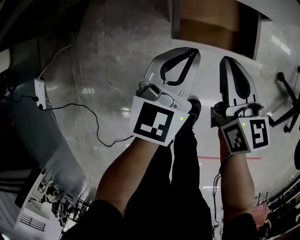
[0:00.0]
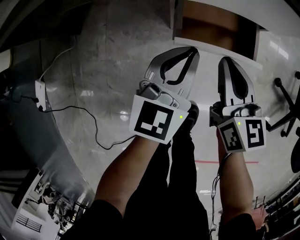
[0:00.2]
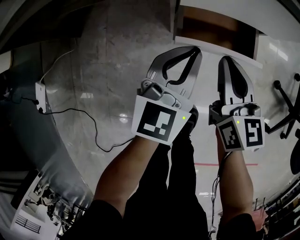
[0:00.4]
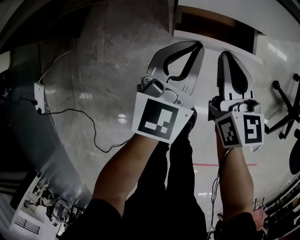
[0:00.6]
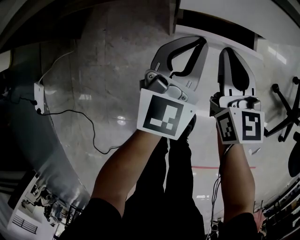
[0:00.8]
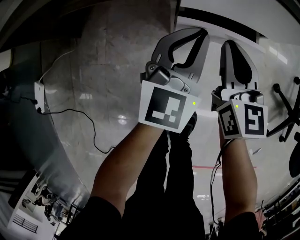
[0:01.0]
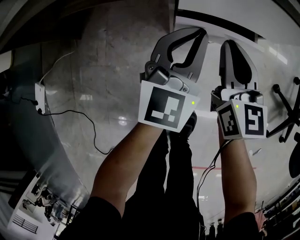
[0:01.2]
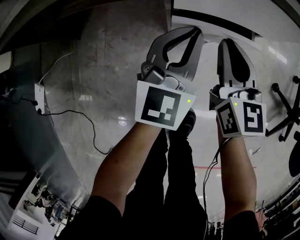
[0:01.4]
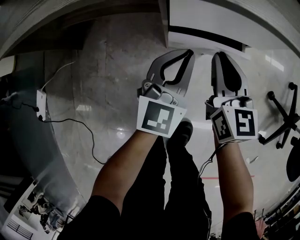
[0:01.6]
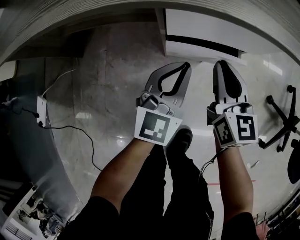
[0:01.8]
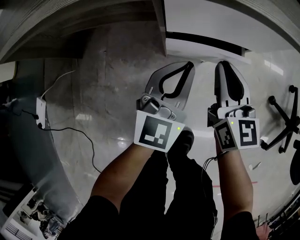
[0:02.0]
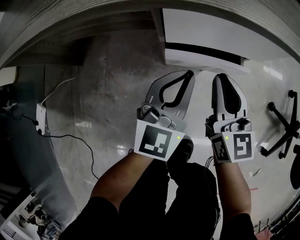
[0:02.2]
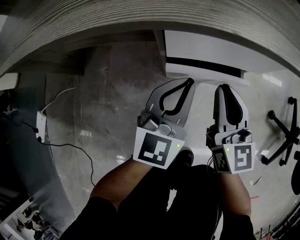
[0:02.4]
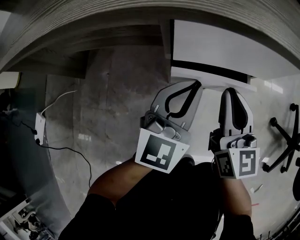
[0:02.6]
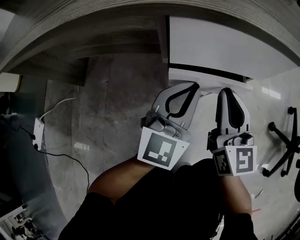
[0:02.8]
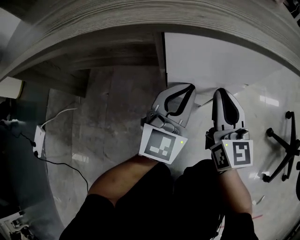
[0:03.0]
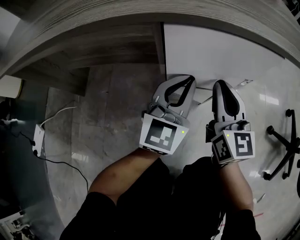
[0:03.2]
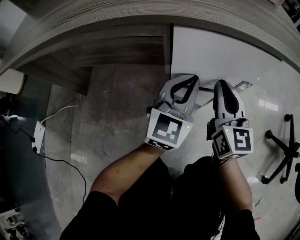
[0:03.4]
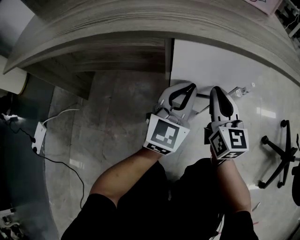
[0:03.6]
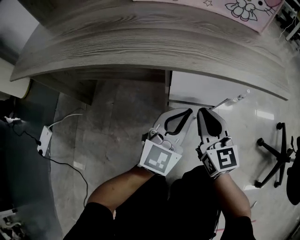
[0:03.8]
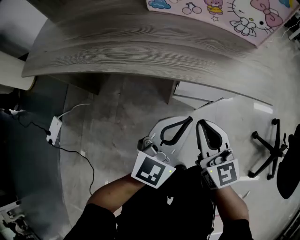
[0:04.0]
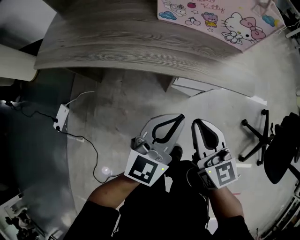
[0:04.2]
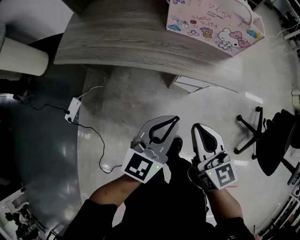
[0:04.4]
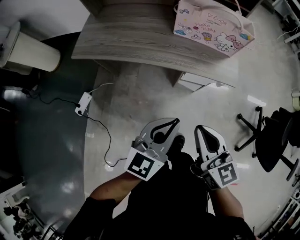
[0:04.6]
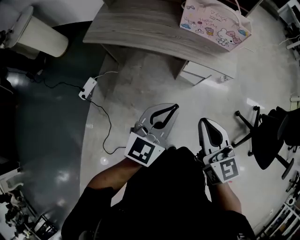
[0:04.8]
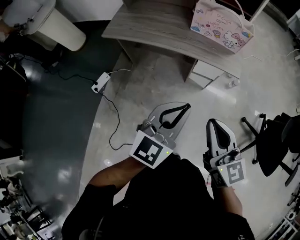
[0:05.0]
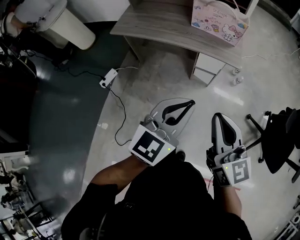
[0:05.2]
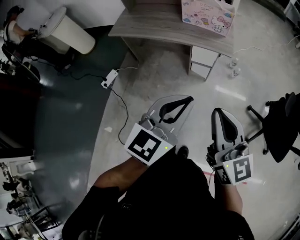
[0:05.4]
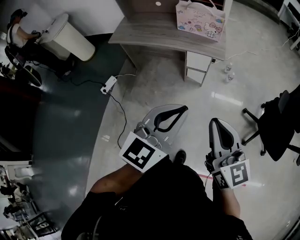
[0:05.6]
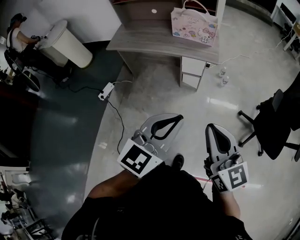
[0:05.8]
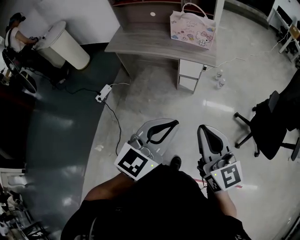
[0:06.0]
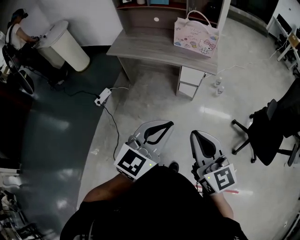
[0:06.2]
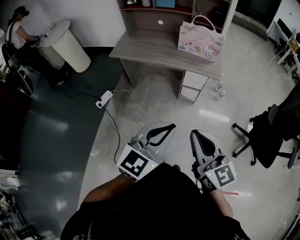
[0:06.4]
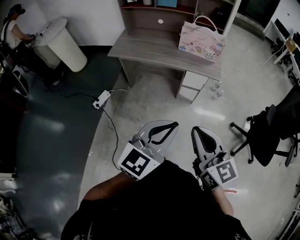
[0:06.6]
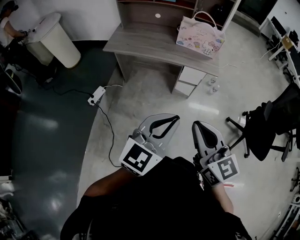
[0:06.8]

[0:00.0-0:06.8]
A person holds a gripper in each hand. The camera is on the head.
0:00.0 to 0:01.4: Both grippers move forward, approximately 5 cm.
0:01.4 to 0:02.8: The grippers move only a little.
0:02.8 to 0:04.0: The left gripper shifts approximately 20 cm upward and backward. Meanwhile the right gripper shifts roughly 15 cm upward, backward and to the left.
0:04.0 to 0:05.4: Both grippers move upward and backward, approximately 60 cm.
0:05.4 to 0:06.8: The two grippers go some 15 cm to the left.

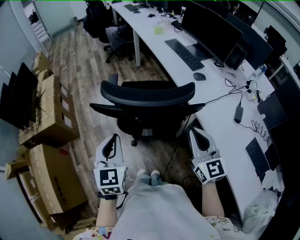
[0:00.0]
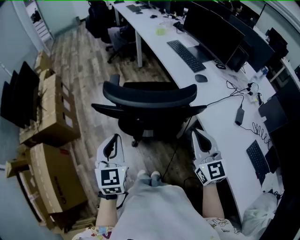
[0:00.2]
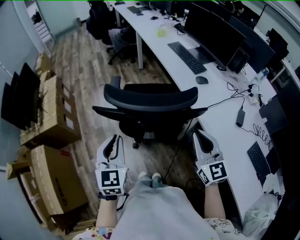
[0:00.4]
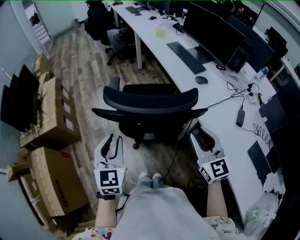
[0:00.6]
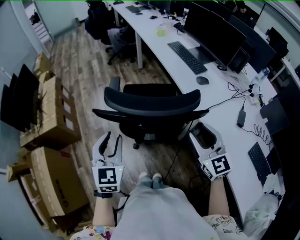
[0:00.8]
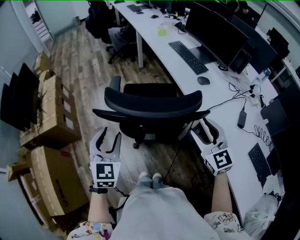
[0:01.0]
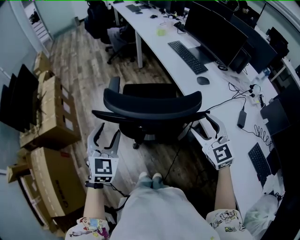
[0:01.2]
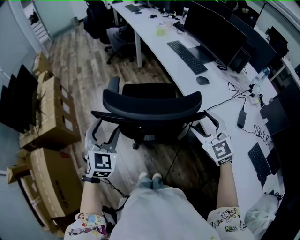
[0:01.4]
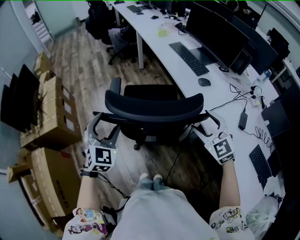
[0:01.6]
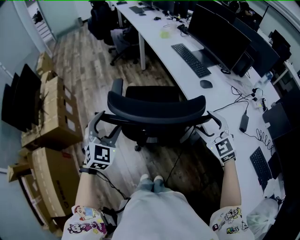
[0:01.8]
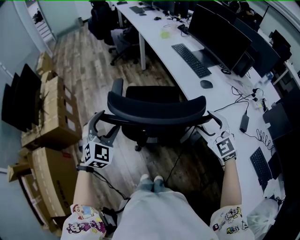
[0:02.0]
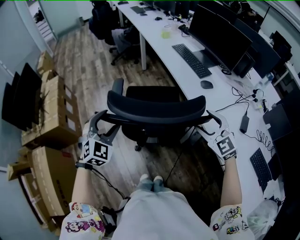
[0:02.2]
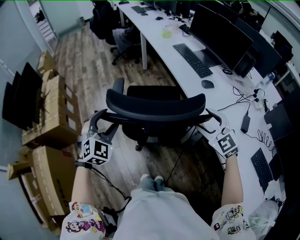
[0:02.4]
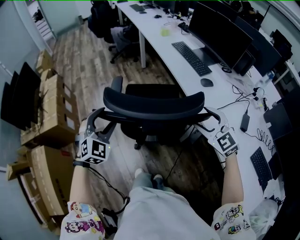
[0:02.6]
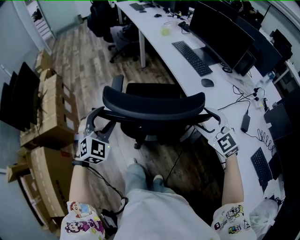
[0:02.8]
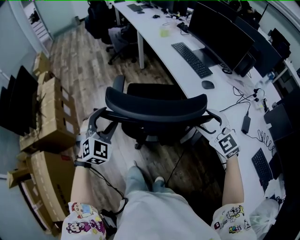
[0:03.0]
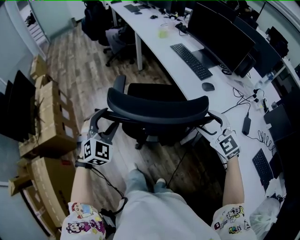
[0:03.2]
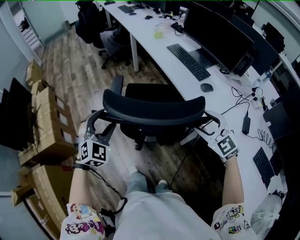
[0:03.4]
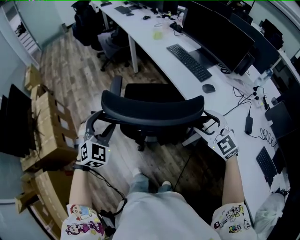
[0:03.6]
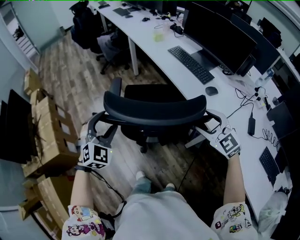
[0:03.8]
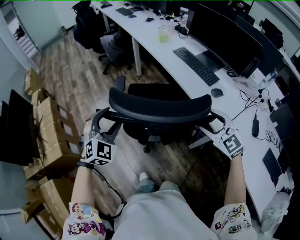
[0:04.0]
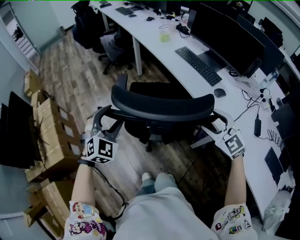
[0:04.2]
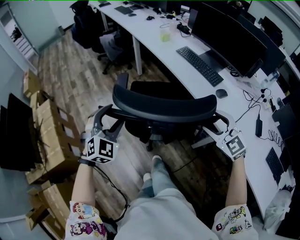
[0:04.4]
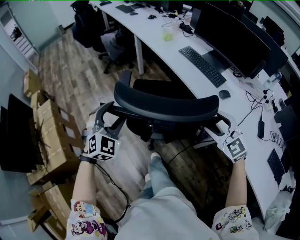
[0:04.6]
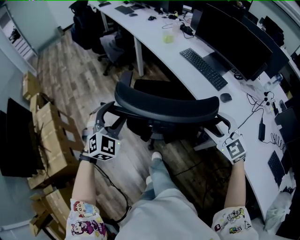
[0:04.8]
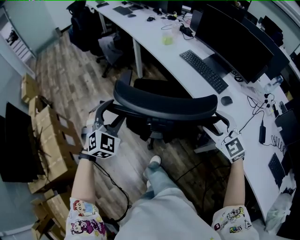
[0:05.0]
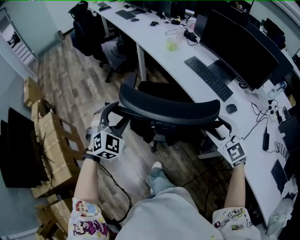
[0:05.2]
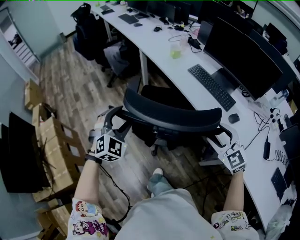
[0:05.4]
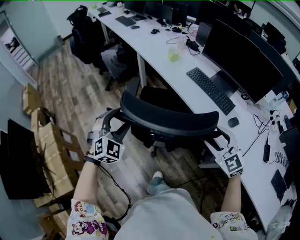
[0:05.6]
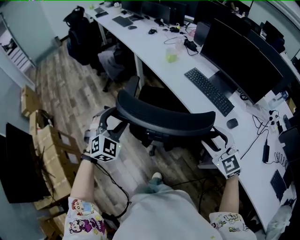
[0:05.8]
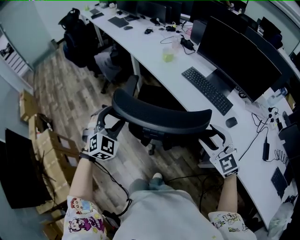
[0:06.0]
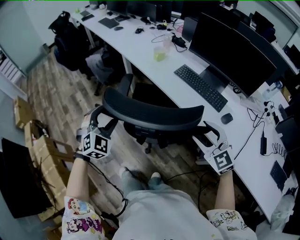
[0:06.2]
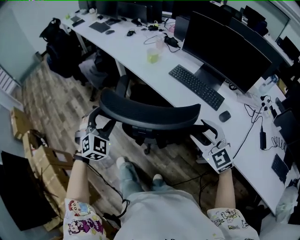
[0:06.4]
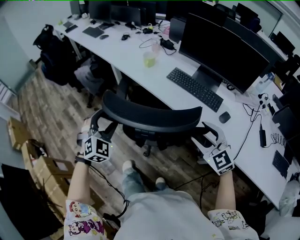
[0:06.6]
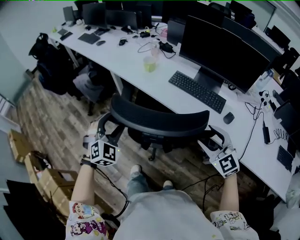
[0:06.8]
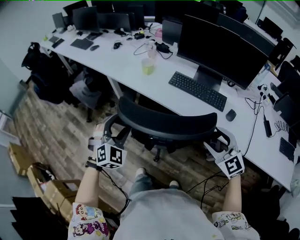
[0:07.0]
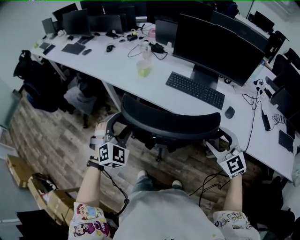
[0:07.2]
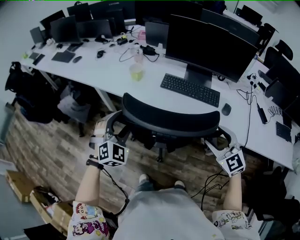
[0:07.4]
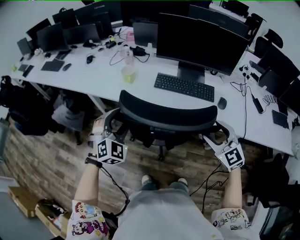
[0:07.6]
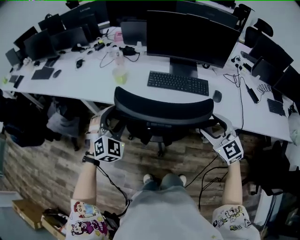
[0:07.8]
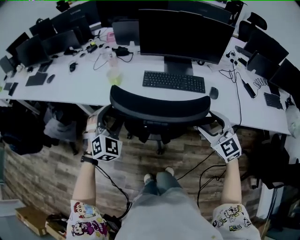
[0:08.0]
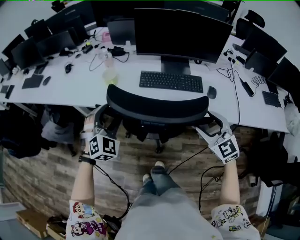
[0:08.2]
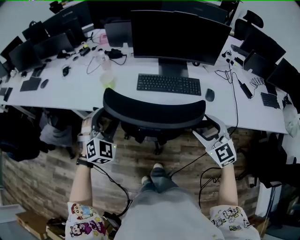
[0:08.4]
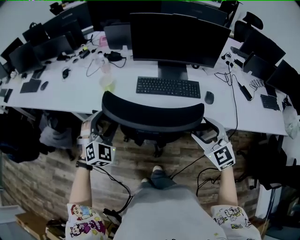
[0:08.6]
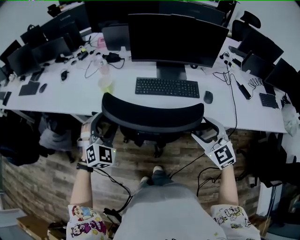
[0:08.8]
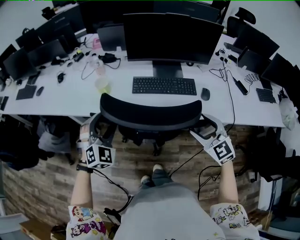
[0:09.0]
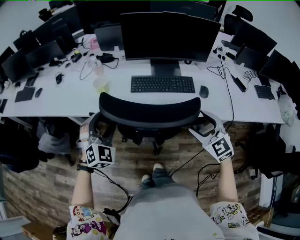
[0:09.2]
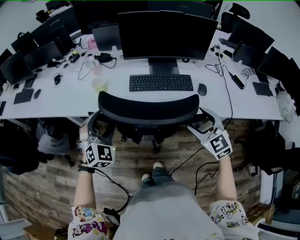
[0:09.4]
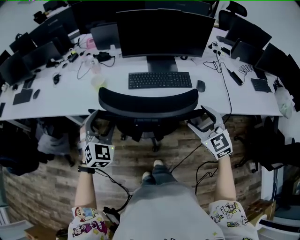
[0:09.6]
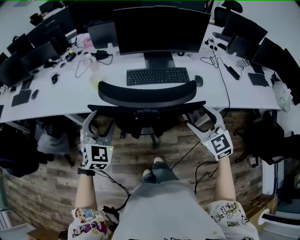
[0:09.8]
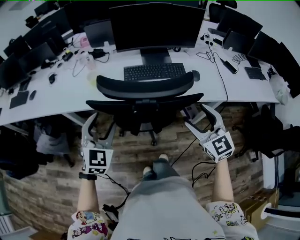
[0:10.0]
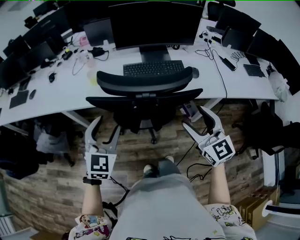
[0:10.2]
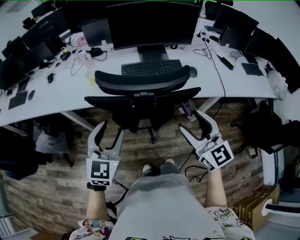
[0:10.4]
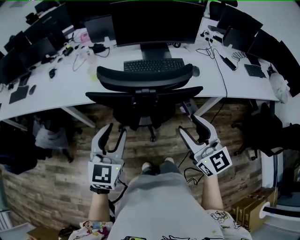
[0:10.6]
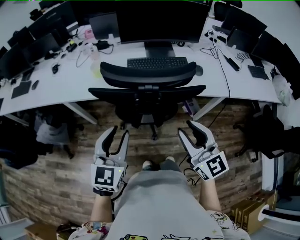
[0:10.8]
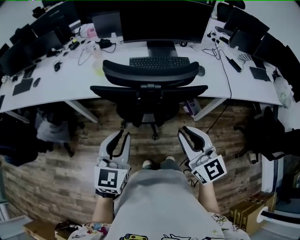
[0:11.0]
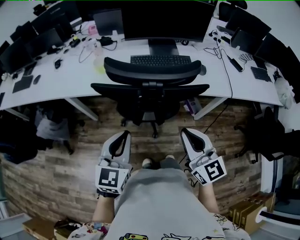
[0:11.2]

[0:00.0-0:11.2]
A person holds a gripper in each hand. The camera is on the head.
0:00.0 to 0:01.6: Both grippers travel together forward, some 10 cm. The left gripper changes its angle by approximately 30 degrees, and opens its fingers. Meanwhile the right gripper rotates some 30 degrees, and opens its fingers.
0:01.6 to 0:03.2: Both grippers travel together forward, about 5 cm.
0:03.2 to 0:04.8: The left gripper goes about 20 cm forward. The right gripper shifts approximately 15 cm forward and to the left.
0:04.8 to 0:06.4: The left gripper goes roughly 25 cm forward, while the right gripper goes some 15 cm forward.
0:06.4 to 0:08.0: The right gripper changes place by some 5 cm, and swivels about 40 degrees; the left gripper ends up approximately 25 cm from where it was, and changes its angle by about 40 degrees.
0:08.0 to 0:09.6: There are only small adjustments of the grippers.
0:09.6 to 0:11.2: The left gripper is displaced backward by about 20 cm, changes its angle by about 40 degrees, and closes its fingers, while the right gripper is displaced backward and to the left by roughly 20 cm, turns by approximately 30 degrees, and closes its fingers.

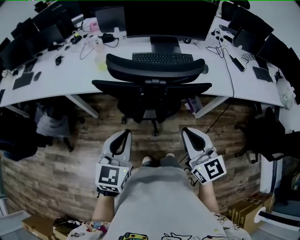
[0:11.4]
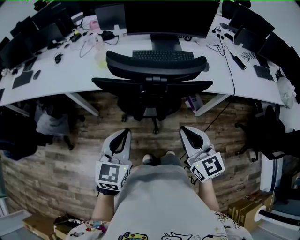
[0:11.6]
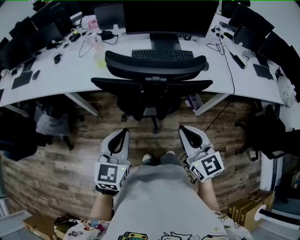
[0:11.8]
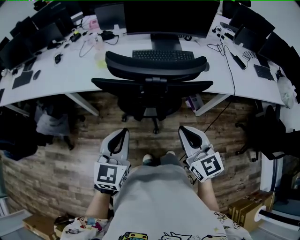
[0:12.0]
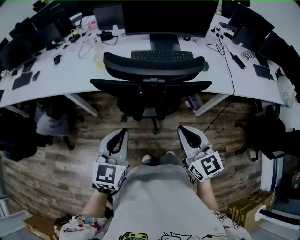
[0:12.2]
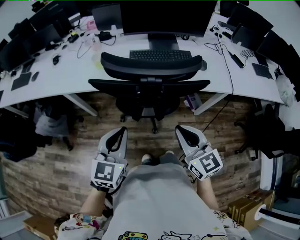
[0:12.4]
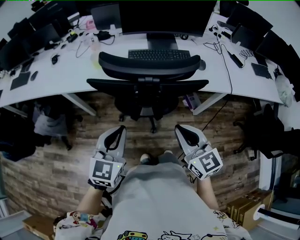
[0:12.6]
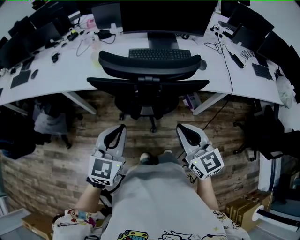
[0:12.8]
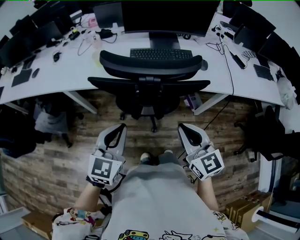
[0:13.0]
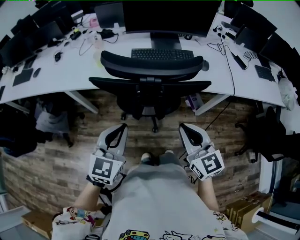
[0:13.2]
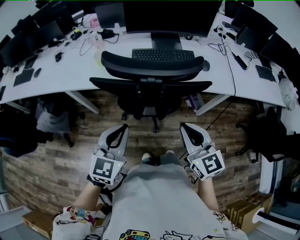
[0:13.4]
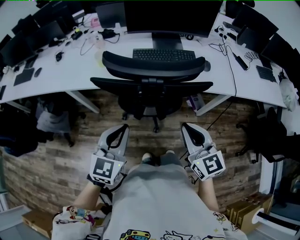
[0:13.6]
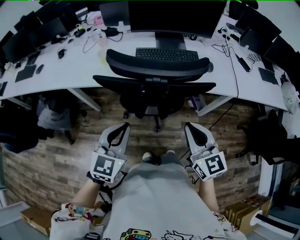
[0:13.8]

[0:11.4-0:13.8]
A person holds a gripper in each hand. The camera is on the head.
0:11.4 to 0:13.8: The grippers stay close to where they were, moving slightly.

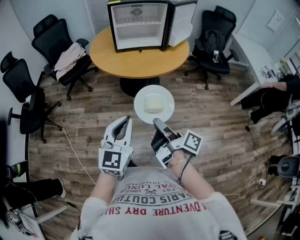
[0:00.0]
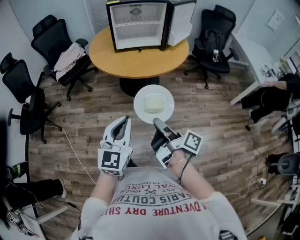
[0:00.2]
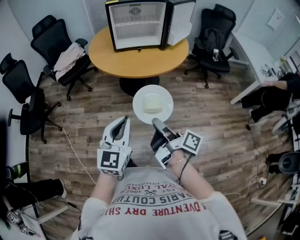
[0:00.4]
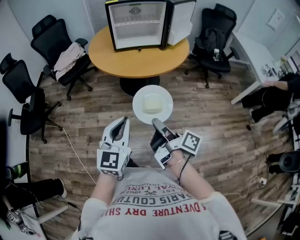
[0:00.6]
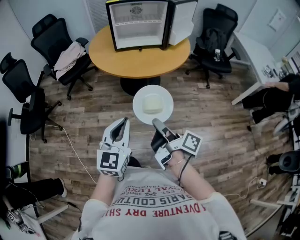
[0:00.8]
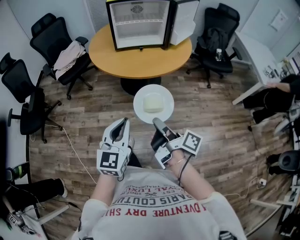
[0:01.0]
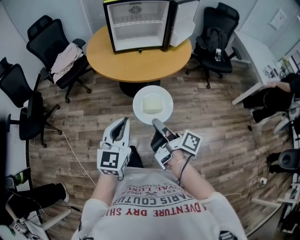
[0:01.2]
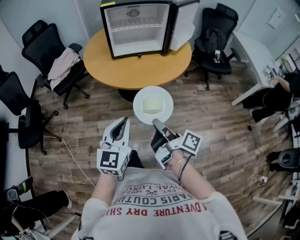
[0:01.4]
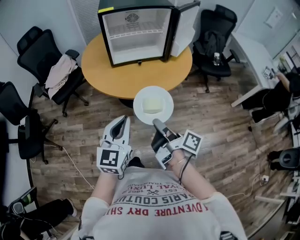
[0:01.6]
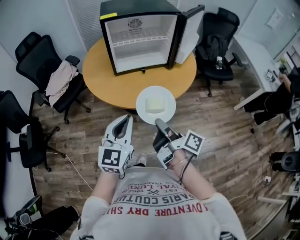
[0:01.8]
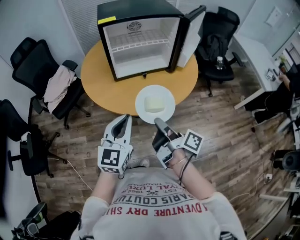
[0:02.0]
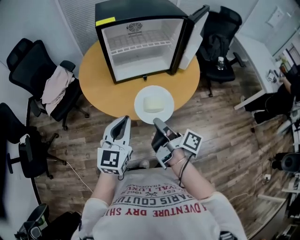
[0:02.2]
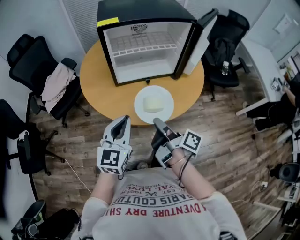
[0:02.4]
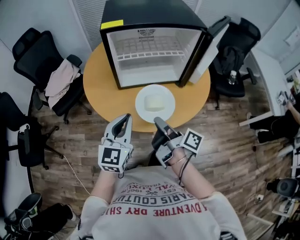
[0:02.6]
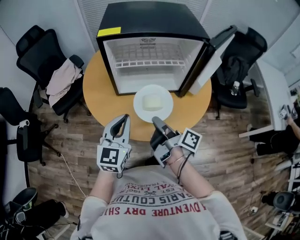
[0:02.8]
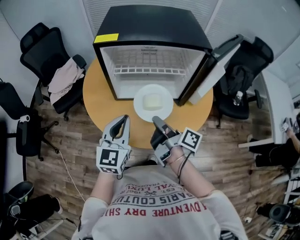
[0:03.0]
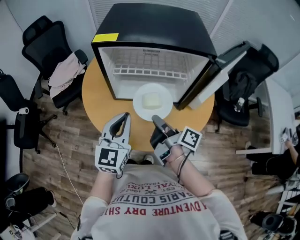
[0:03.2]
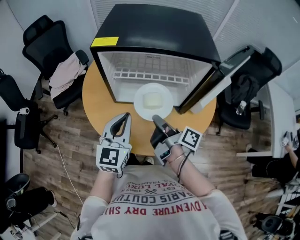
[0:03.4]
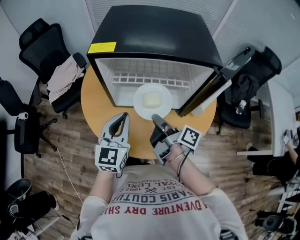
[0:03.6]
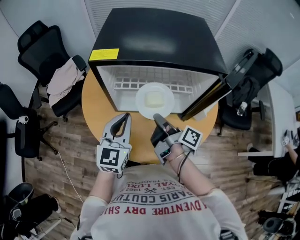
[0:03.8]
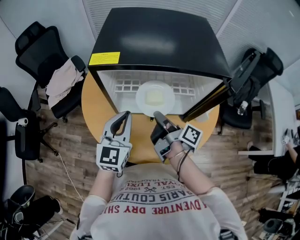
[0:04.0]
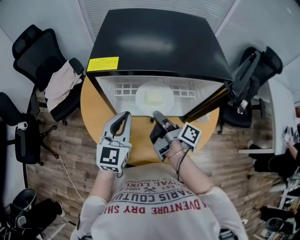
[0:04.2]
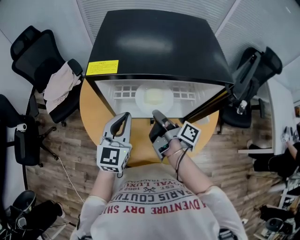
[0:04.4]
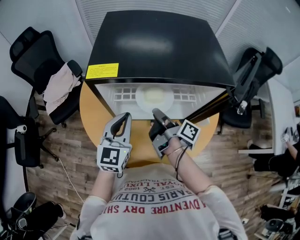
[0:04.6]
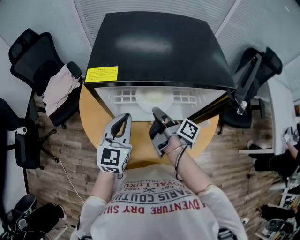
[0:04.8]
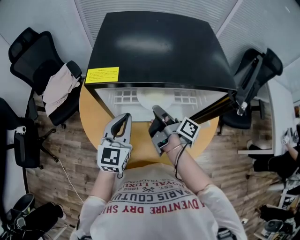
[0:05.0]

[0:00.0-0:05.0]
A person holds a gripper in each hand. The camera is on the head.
0:00.0 to 0:01.6: The left gripper shifts by some 20 cm.
0:01.6 to 0:03.4: The left gripper moves approximately 35 cm.
0:03.4 to 0:05.0: The left gripper shifts by approximately 15 cm.
